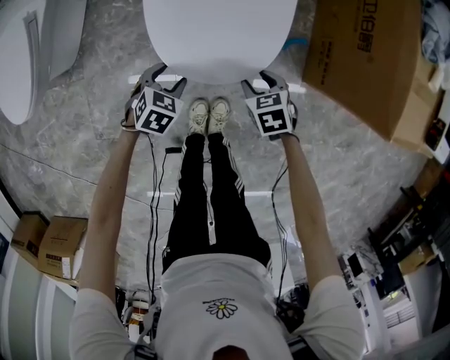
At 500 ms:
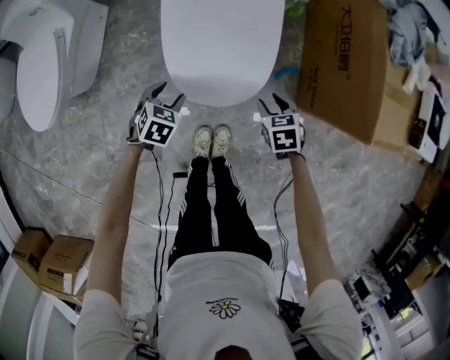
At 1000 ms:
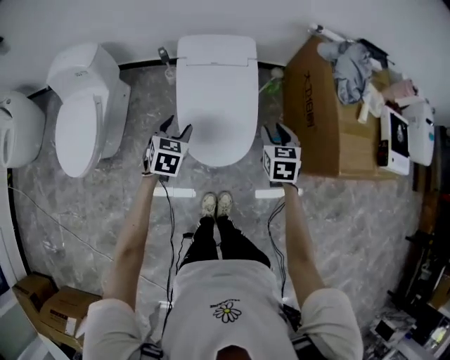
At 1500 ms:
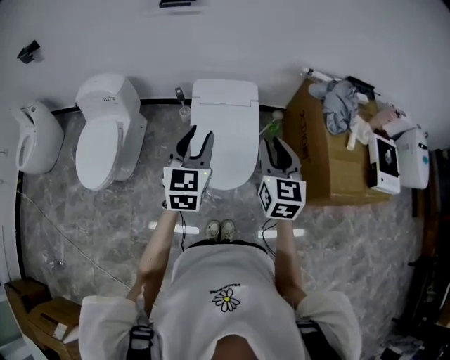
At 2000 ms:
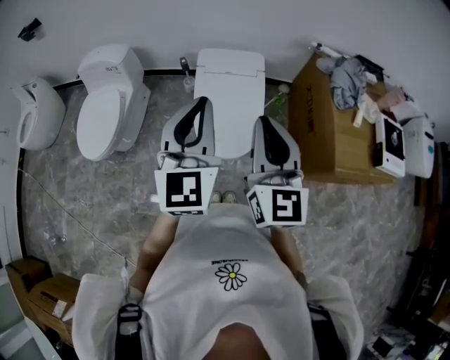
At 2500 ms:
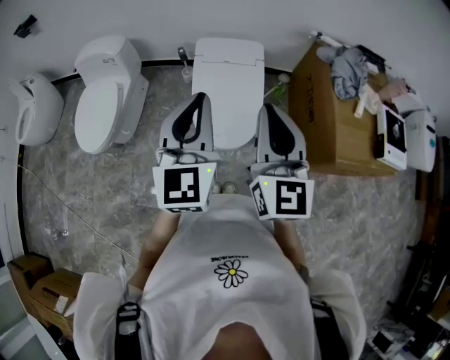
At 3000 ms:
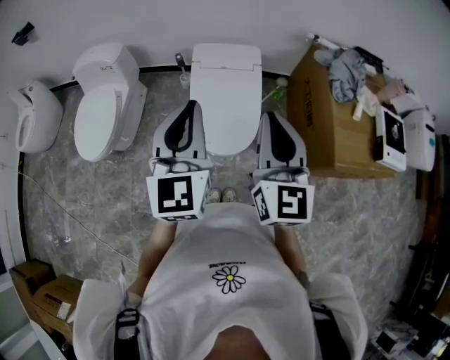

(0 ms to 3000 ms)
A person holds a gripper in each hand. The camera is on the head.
0 ms - 1500 ms: Both grippers travel together upward, about 60 cm. The left gripper tips its fingers upward by roughly 50 degrees; the right gripper points its fingers some 50 degrees further upward, and closes its fingers.
1500 ms - 3000 ms: The two grippers go roughly 10 cm upward and backward. The right gripper closes up; the left gripper closes its fingers.

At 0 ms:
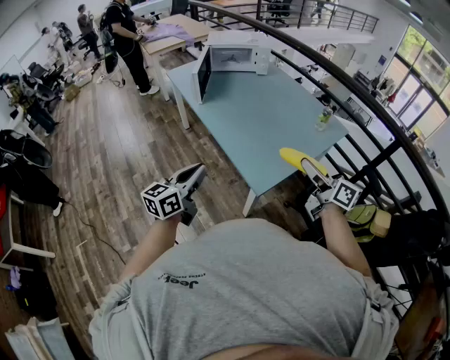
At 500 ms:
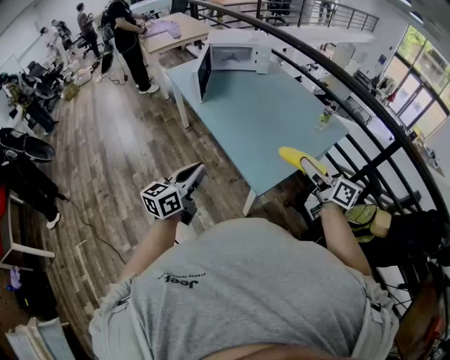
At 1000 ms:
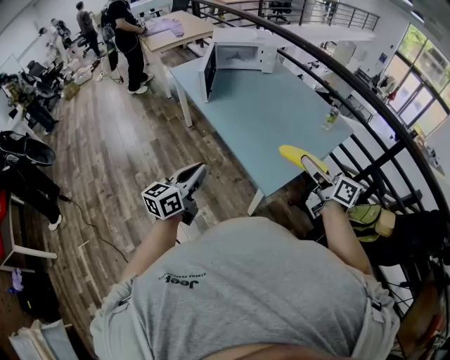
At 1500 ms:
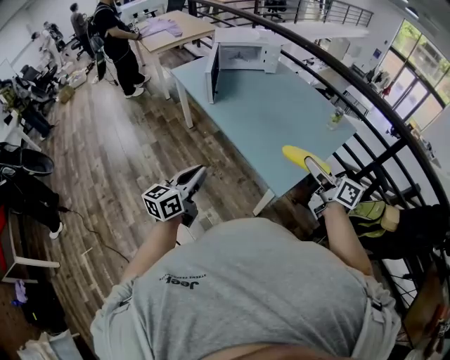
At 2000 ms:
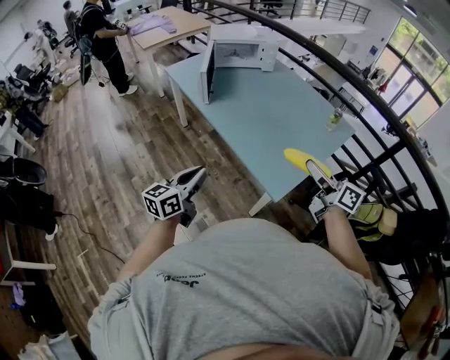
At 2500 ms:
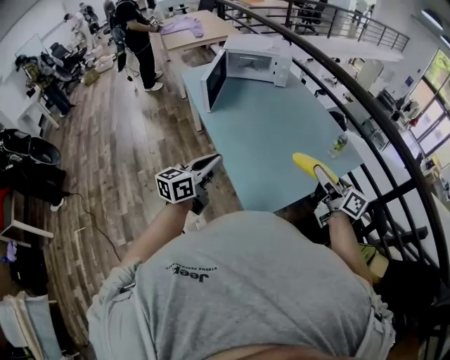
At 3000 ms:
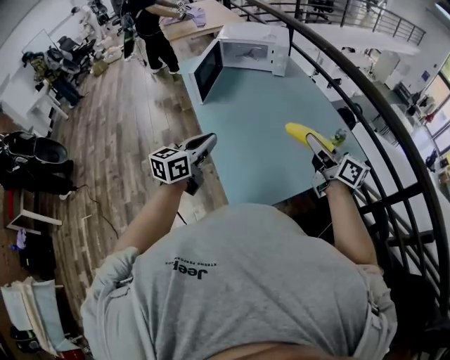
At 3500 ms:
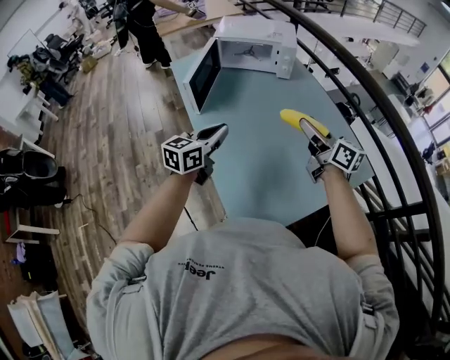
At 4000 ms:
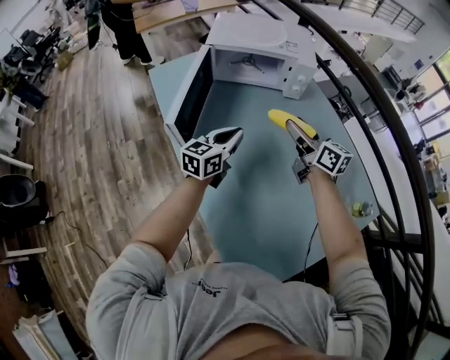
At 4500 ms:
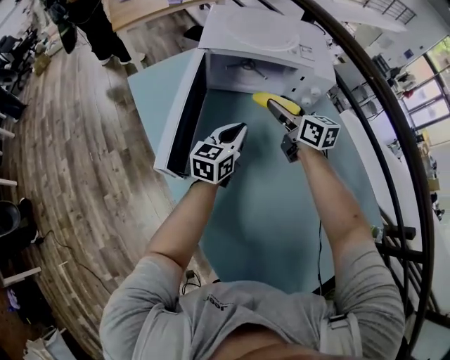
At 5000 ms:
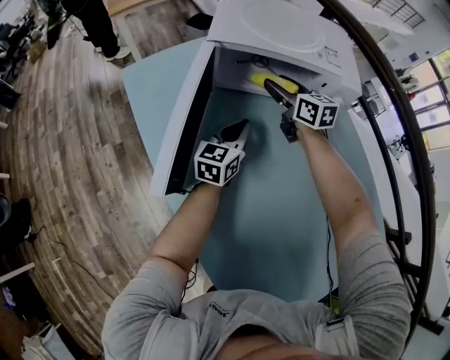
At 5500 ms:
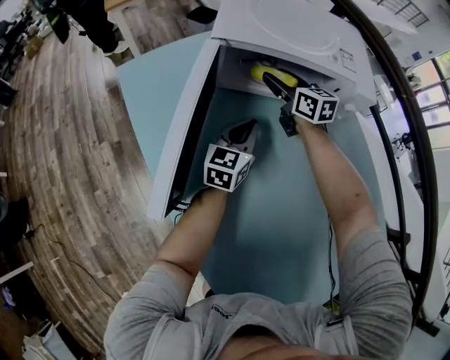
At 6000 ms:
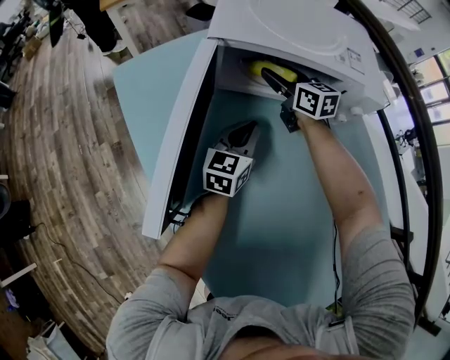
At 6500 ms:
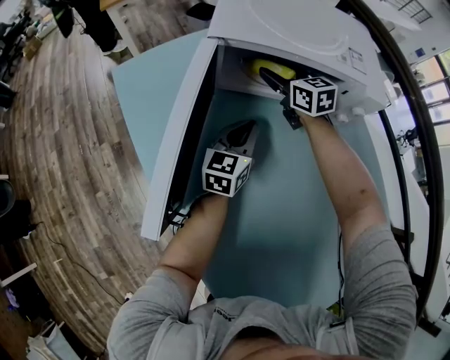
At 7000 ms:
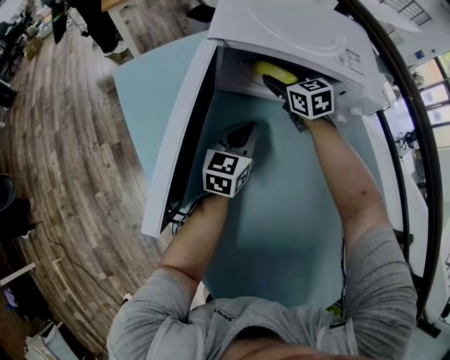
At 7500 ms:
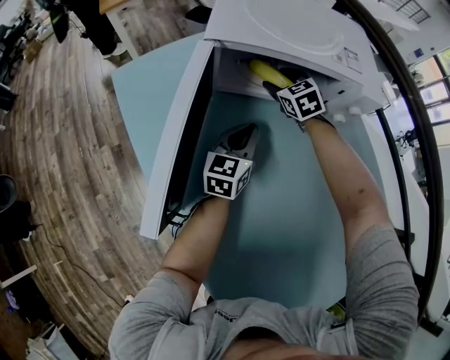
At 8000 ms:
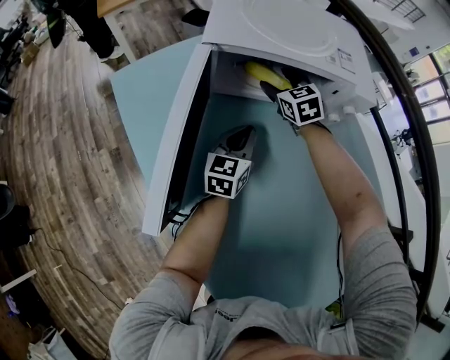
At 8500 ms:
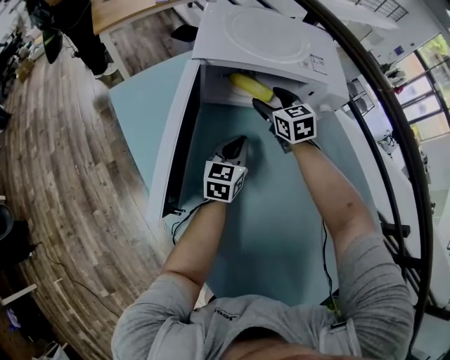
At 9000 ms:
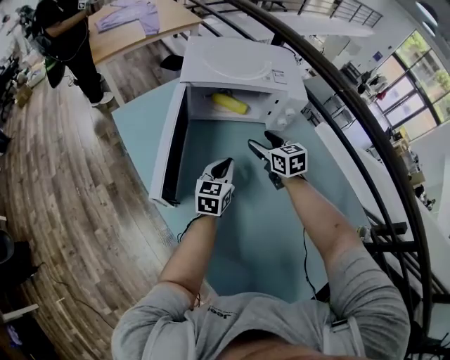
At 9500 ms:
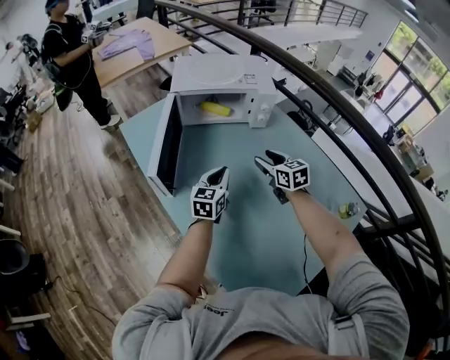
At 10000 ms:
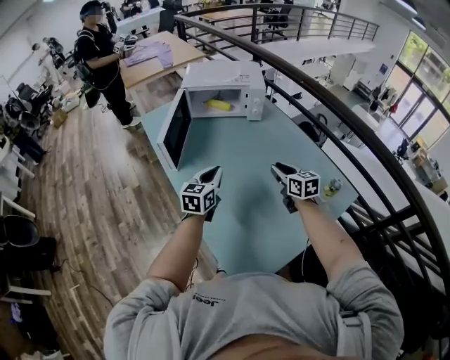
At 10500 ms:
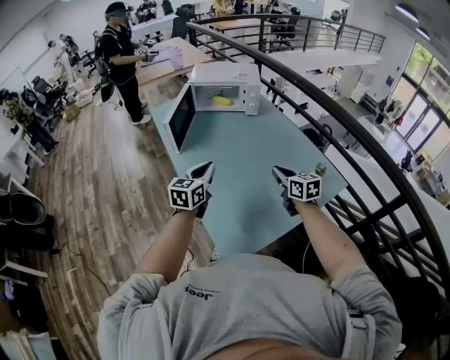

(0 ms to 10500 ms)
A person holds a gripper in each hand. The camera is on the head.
0 ms - 2000 ms: The right gripper moves to the left, roughly 10 cm. Meanwhile the left gripper heads to the left and forward, covering some 10 cm.
2000 ms - 4000 ms: Both grippers are carried forward, roughly 60 cm.
4000 ms - 6500 ms: The grippers both shift forward and downward by about 35 cm. The right gripper rotates approximately 30 degrees.
6500 ms - 8500 ms: The right gripper moves backward, some 5 cm.
8500 ms - 10500 ms: Both grippers are carried backward, some 60 cm. The right gripper rotates about 20 degrees, and closes up. Meanwhile the left gripper travels upward by approximately 25 cm.

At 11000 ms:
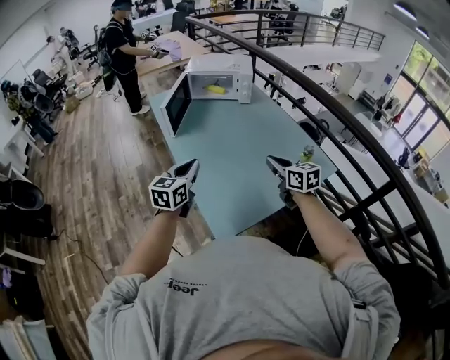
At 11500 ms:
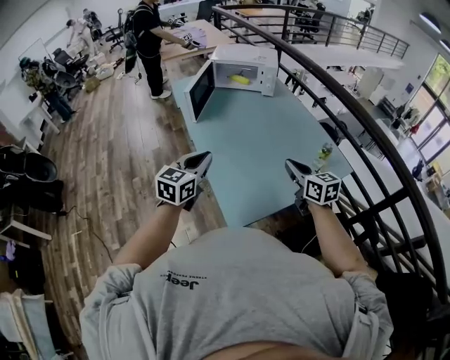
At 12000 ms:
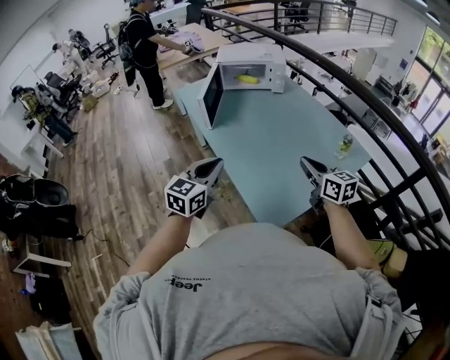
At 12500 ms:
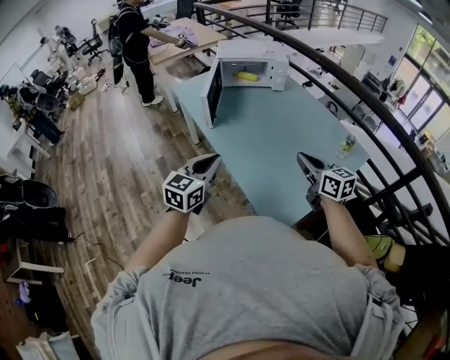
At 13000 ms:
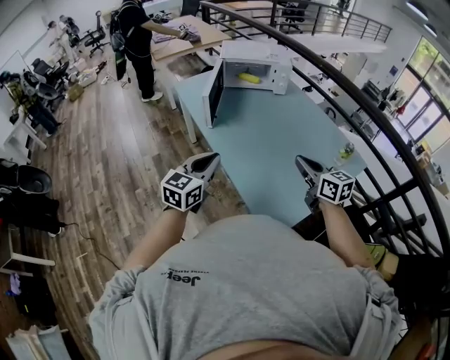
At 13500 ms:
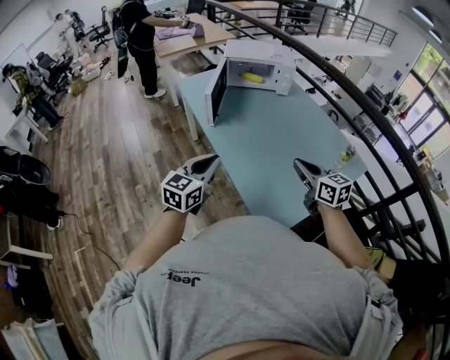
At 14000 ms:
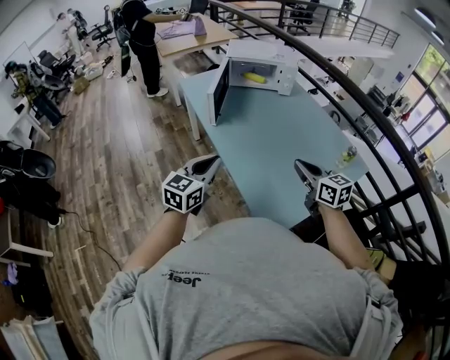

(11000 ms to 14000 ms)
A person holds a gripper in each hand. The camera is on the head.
11000 ms - 12500 ms: Both grippers travel together to the left, roughly 15 cm.
12500 ms - 14000 ms: The grippers stay close to where they were, moving slightly.

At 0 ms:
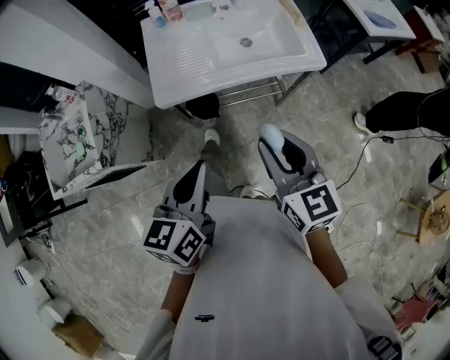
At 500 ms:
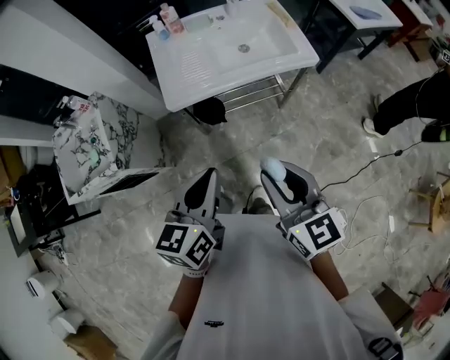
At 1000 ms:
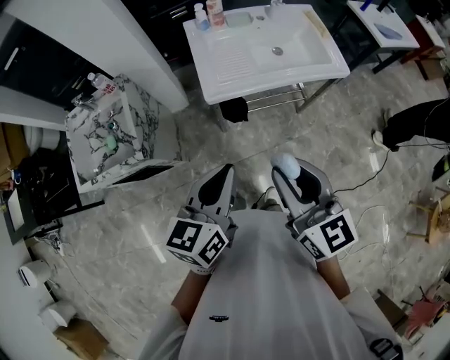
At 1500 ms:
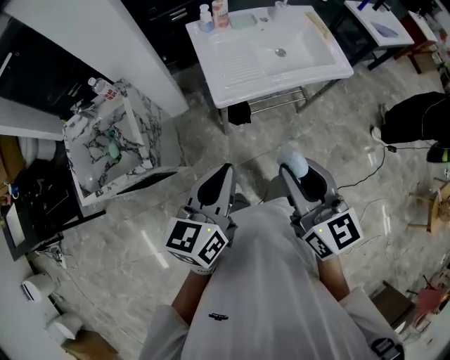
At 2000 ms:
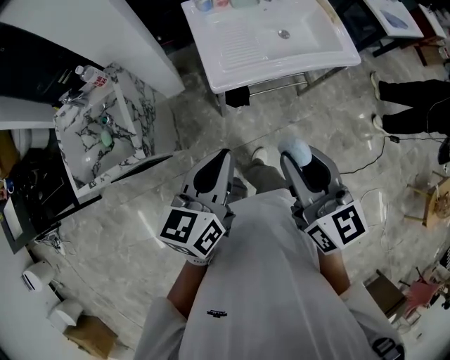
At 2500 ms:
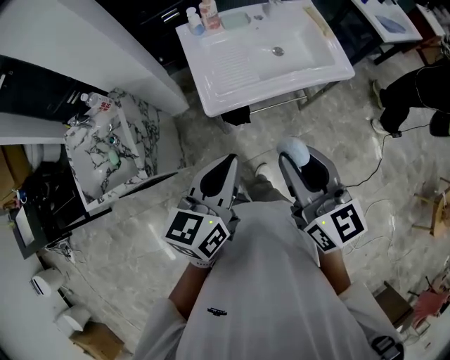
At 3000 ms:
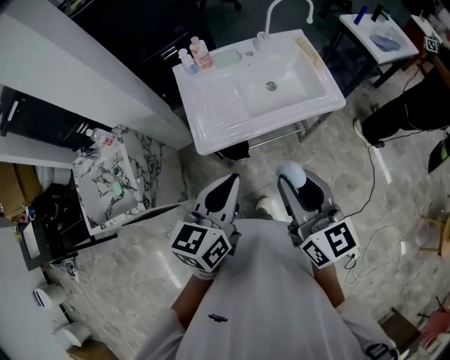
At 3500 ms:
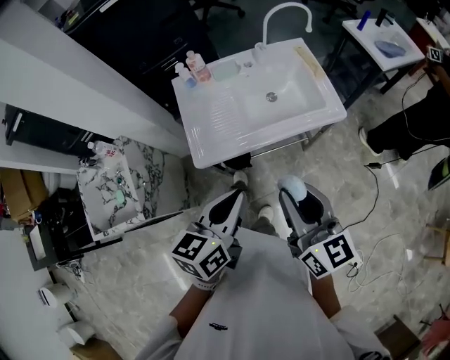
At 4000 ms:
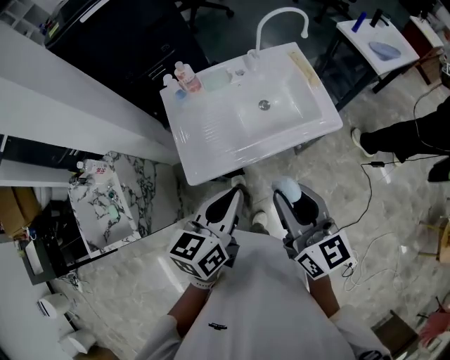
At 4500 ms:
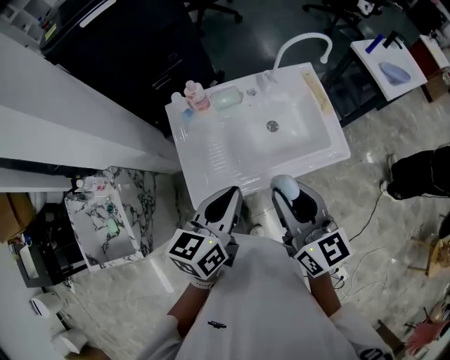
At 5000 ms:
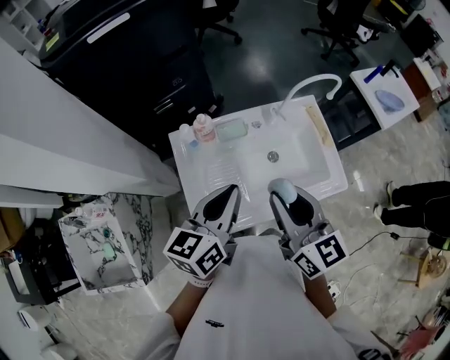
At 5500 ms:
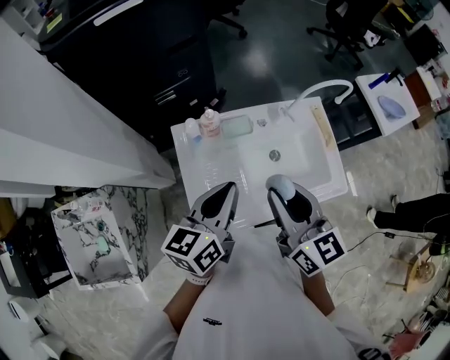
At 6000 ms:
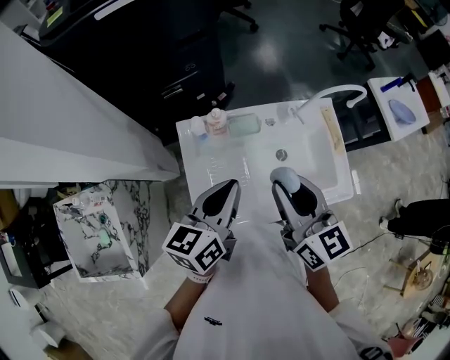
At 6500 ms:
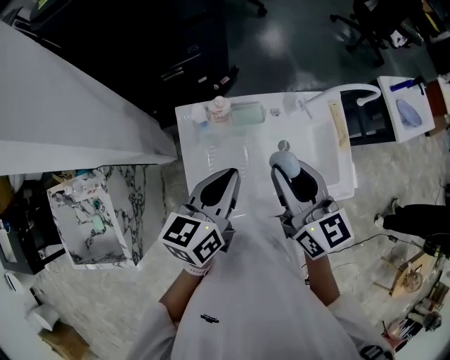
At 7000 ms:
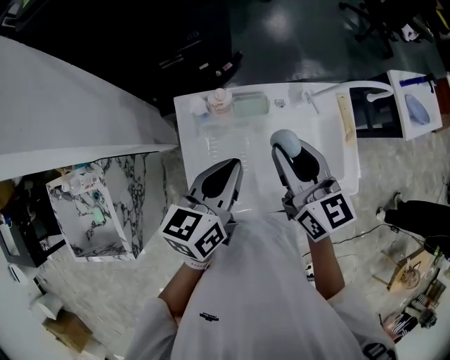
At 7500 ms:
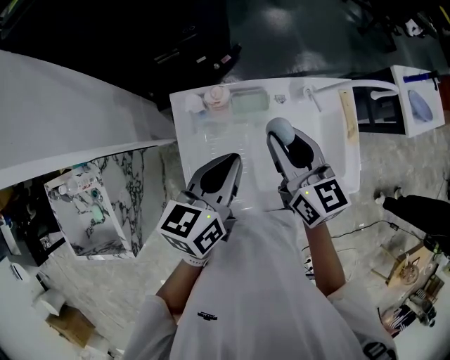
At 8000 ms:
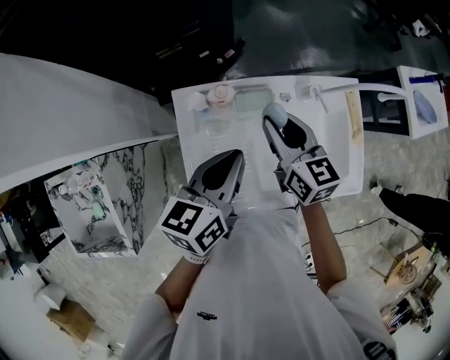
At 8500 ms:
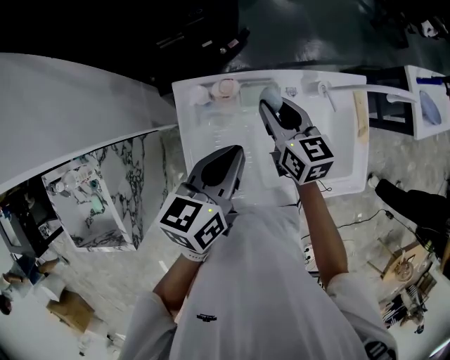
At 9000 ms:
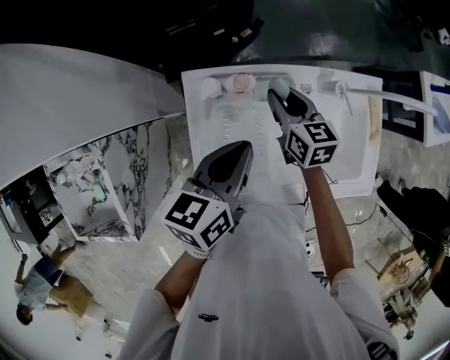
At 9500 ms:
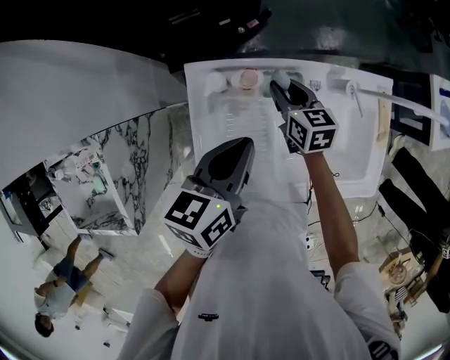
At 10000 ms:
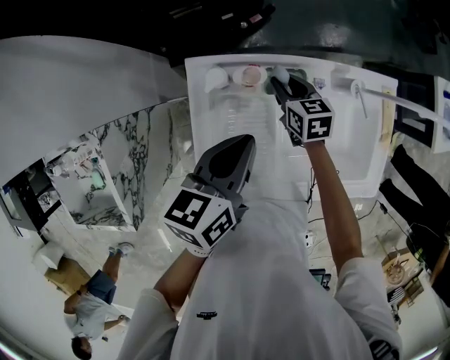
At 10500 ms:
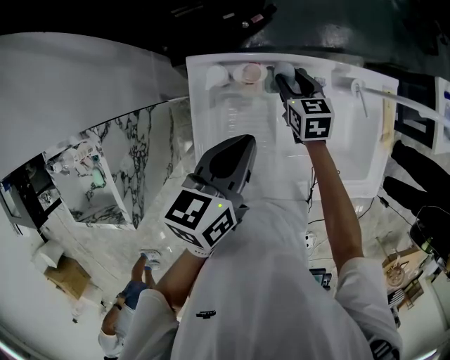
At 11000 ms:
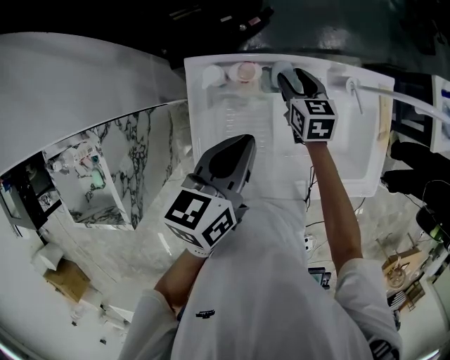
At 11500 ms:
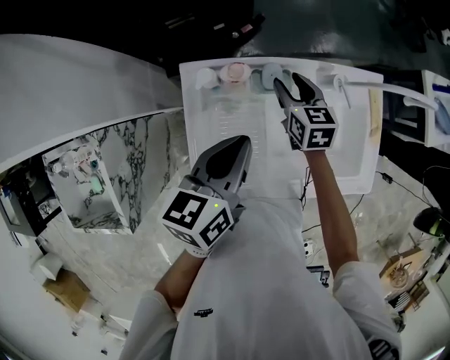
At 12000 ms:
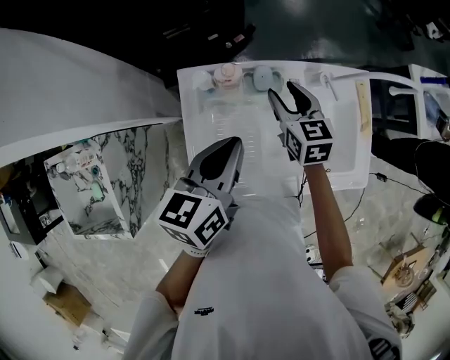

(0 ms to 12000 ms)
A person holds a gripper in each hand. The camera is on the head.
0 ms - 2000 ms: Both grippers move to the left, roughly 20 cm.
2000 ms - 4000 ms: Both grippers move forward and to the right, roughly 25 cm.
4000 ms - 6000 ms: Both grippers move forward and to the left, roughly 30 cm.
6000 ms - 8000 ms: The right gripper travels forward and downward by roughly 20 cm, while the left gripper shifts approximately 10 cm forward and downward.
8000 ms - 10000 ms: The left gripper travels downward by some 5 cm. The right gripper heads downward, covering approximately 20 cm, and rotates about 20 degrees.
10000 ms - 12000 ms: The right gripper shifts roughly 15 cm upward, while the left gripper moves upward, some 5 cm.
